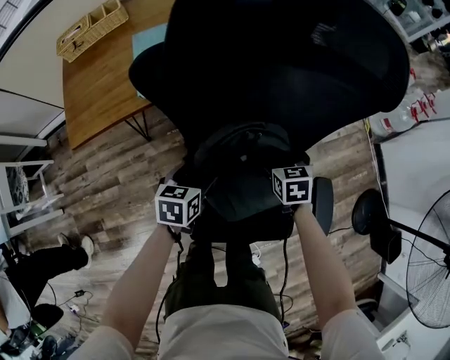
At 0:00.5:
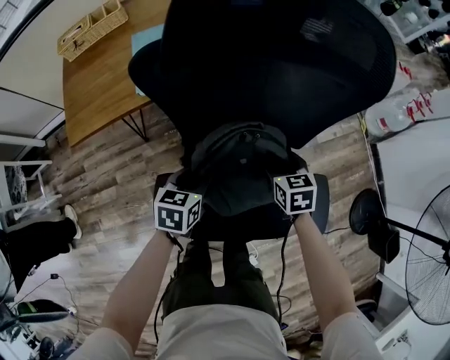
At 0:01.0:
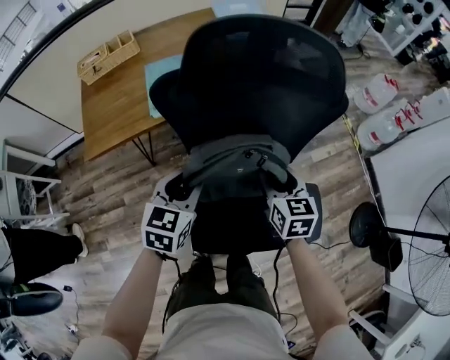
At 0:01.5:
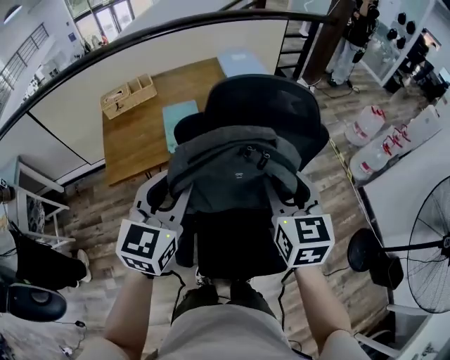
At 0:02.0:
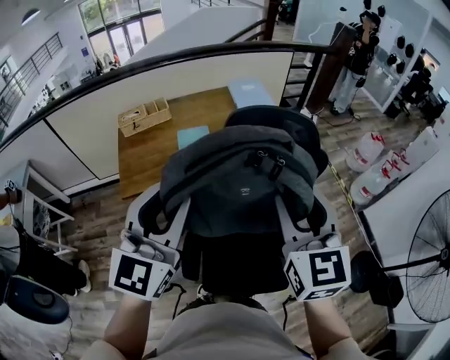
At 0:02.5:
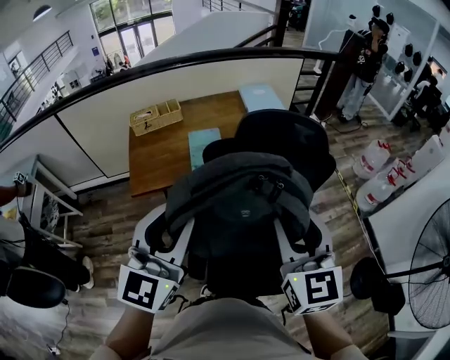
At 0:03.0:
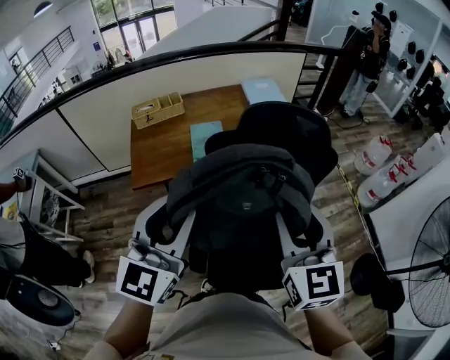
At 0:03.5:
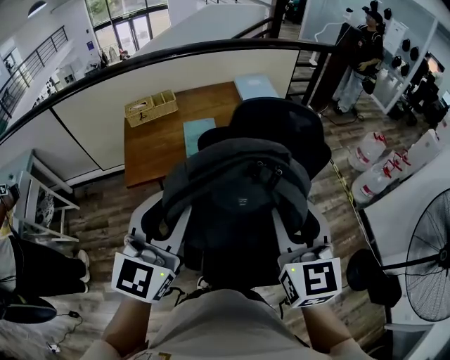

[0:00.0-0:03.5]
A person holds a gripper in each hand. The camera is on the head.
0:00.0 to 0:02.0: The grippers both shift upward by some 50 cm. The right gripper tips its fingers upward by approximately 40 degrees, and closes its fingers, while the left gripper points its fingers approximately 50 degrees further upward, and closes its fingers.
0:02.0 to 0:03.5: The left gripper ends up about 5 cm from where it was; the right gripper travels backward by approximately 5 cm.

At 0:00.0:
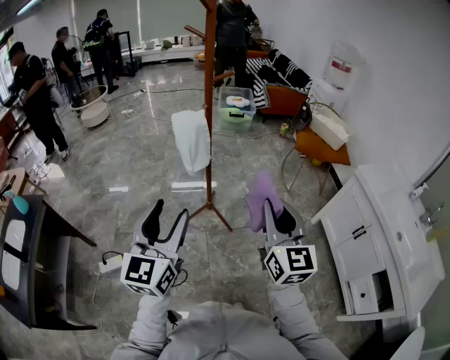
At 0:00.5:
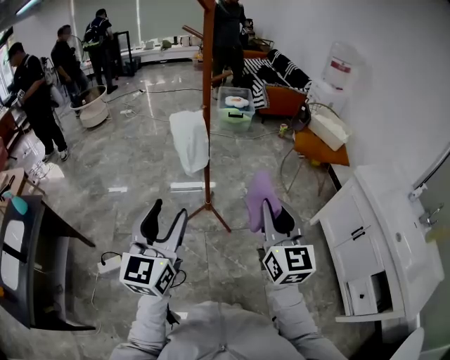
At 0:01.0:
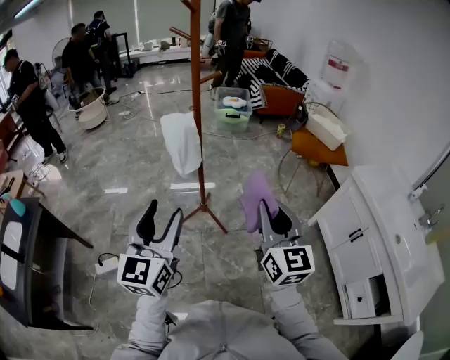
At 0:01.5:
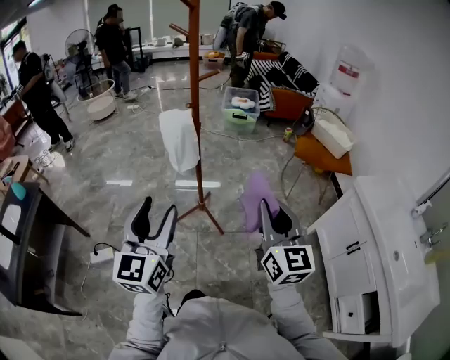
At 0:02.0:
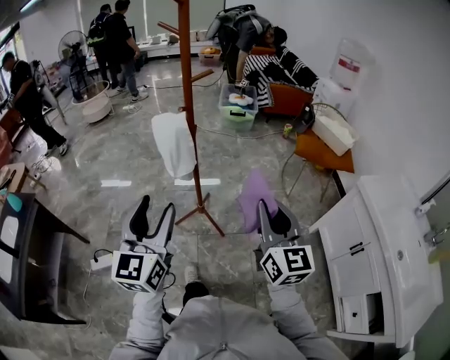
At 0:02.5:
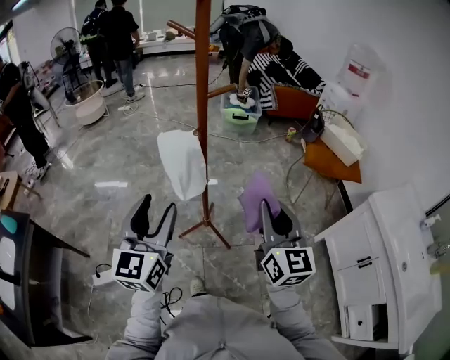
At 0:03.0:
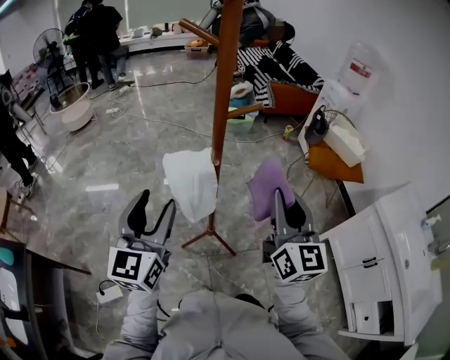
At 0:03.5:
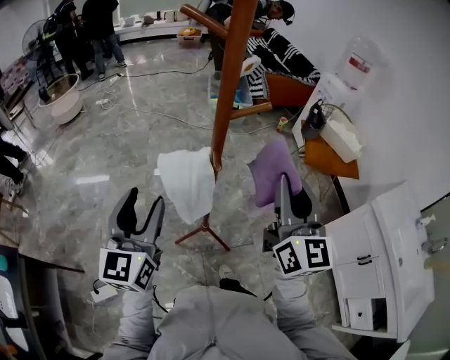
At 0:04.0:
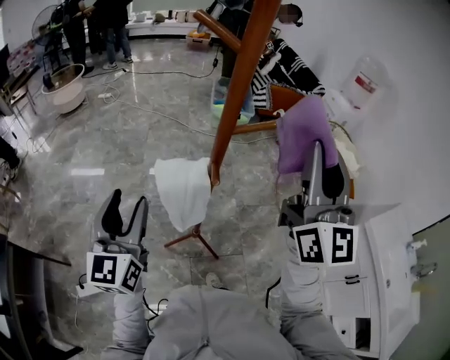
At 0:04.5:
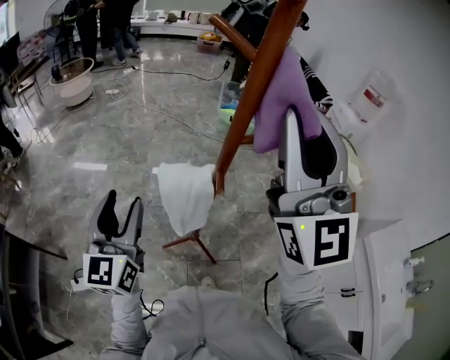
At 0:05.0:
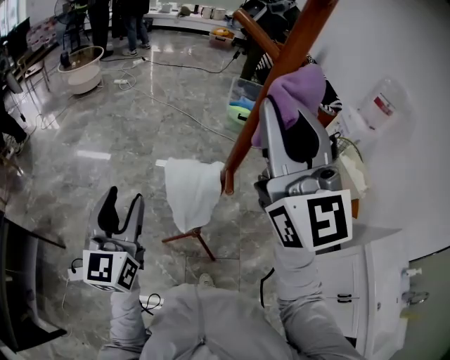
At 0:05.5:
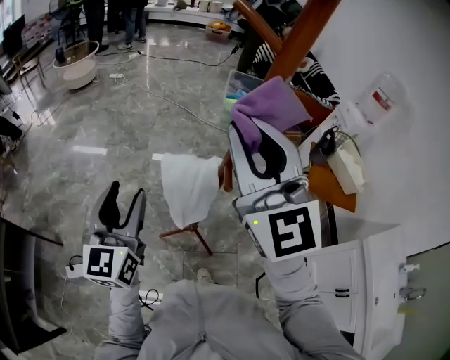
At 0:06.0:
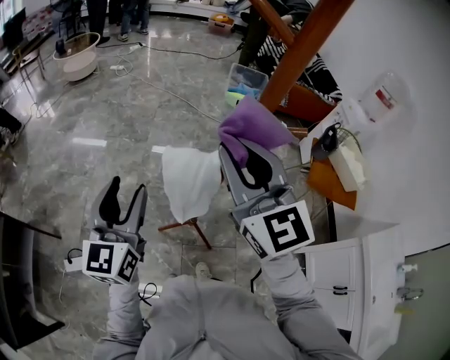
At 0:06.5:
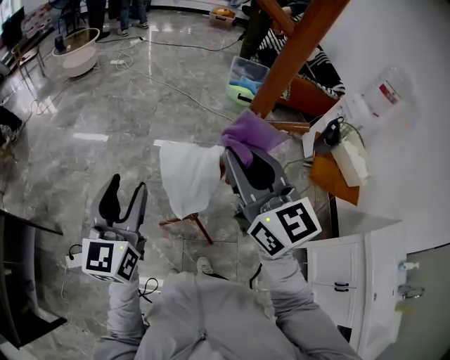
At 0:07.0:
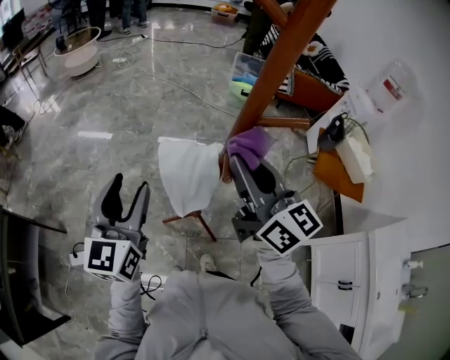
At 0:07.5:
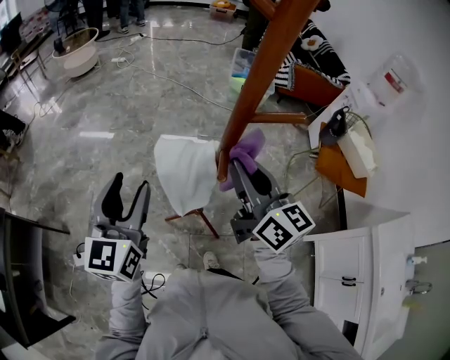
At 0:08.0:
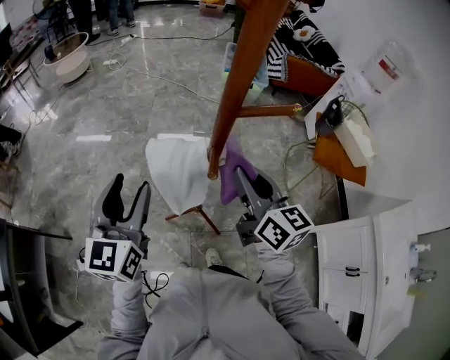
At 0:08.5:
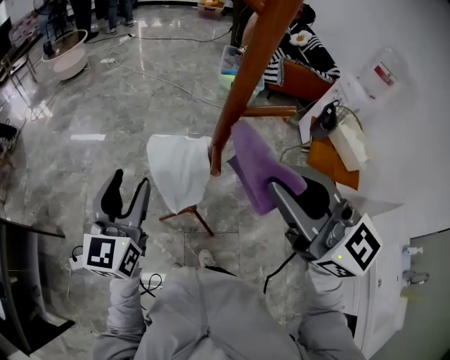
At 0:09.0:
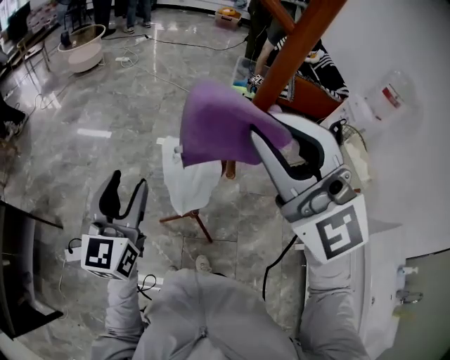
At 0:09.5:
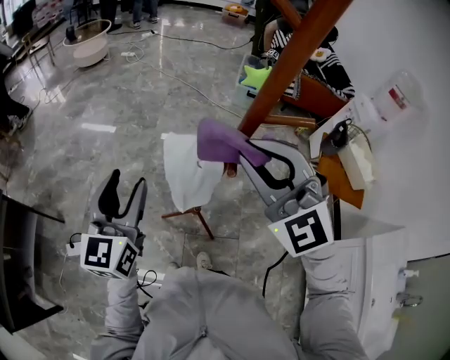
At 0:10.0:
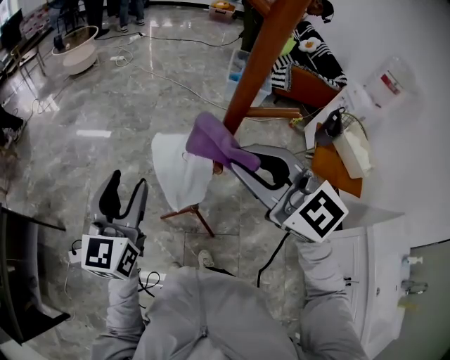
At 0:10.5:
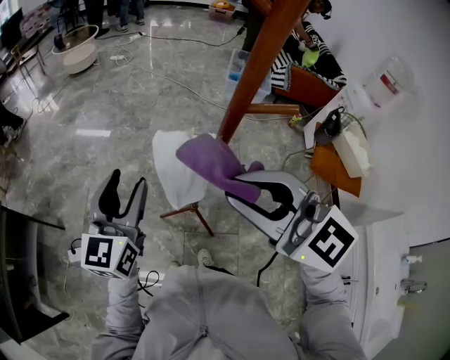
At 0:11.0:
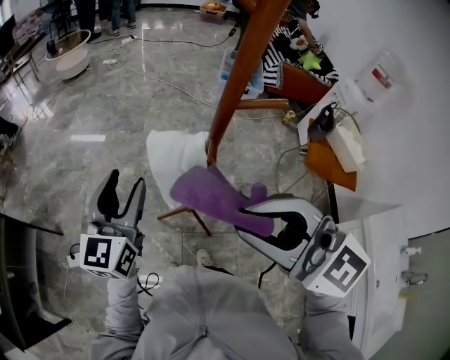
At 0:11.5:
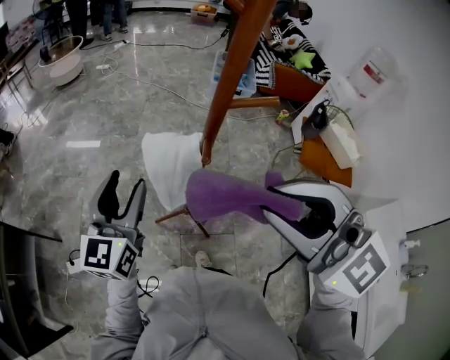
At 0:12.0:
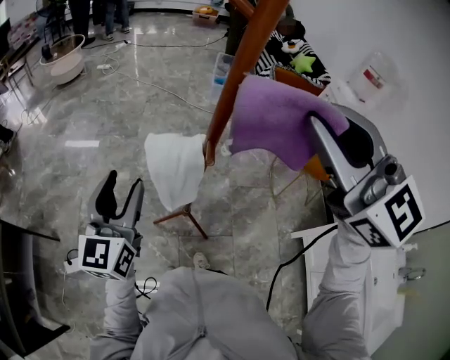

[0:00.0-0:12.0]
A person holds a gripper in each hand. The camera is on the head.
0:00.0 to 0:02.0: The grippers both shift forward and to the right by approximately 10 cm.
0:02.0 to 0:04.0: The right gripper travels forward, upward and to the left by some 35 cm, and swivels approximately 30 degrees, while the left gripper is displaced forward and to the left by some 35 cm.
0:04.0 to 0:06.0: The right gripper shifts roughly 20 cm to the left, downward and forward, and swivels approximately 40 degrees.
0:06.0 to 0:08.0: The right gripper shifts about 20 cm downward and to the right, and swivels about 40 degrees.
0:08.0 to 0:10.0: The right gripper moves upward and to the left, about 15 cm, and swivels roughly 50 degrees.
0:10.0 to 0:12.0: The right gripper shifts roughly 15 cm upward, and changes its angle by some 20 degrees.

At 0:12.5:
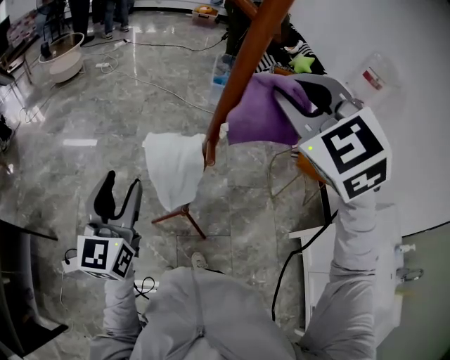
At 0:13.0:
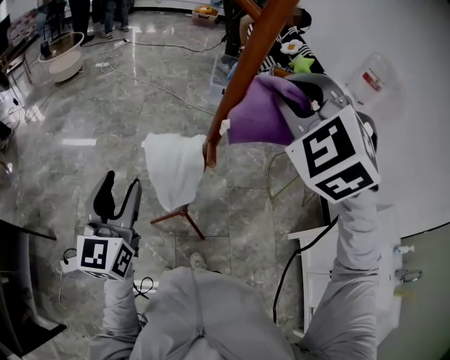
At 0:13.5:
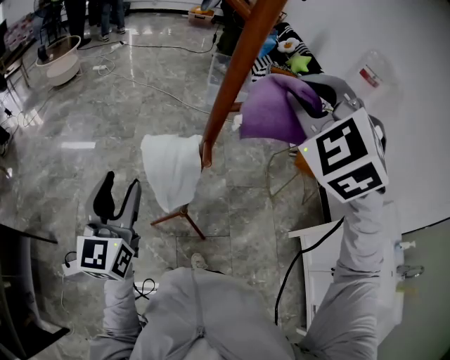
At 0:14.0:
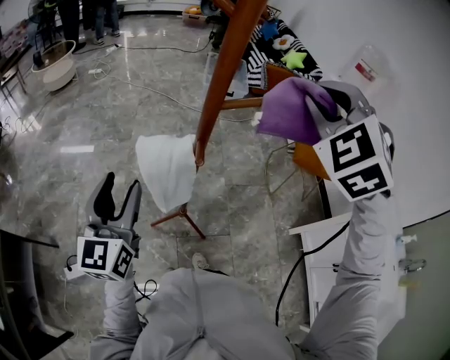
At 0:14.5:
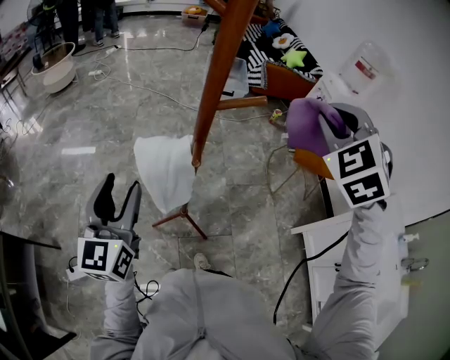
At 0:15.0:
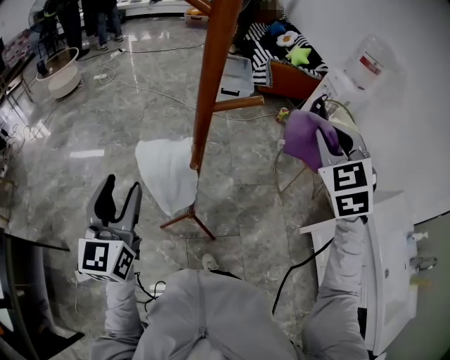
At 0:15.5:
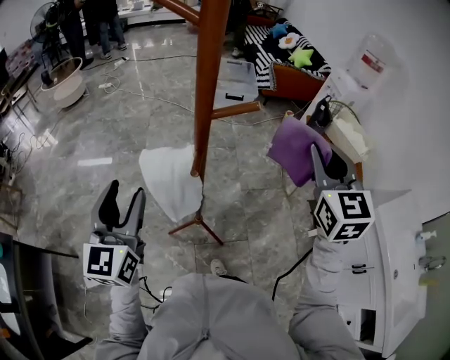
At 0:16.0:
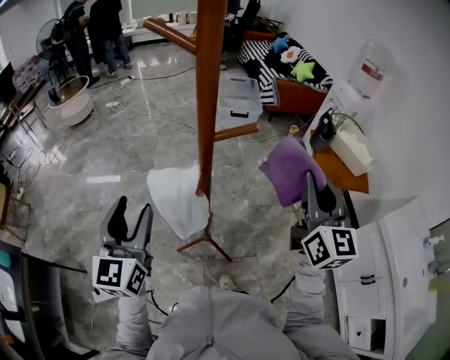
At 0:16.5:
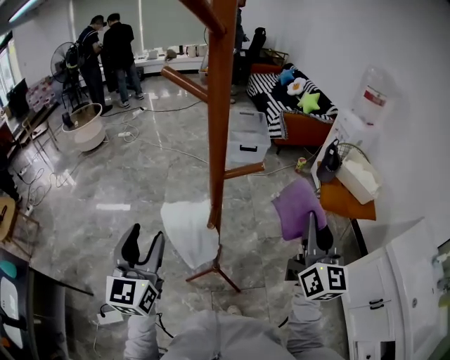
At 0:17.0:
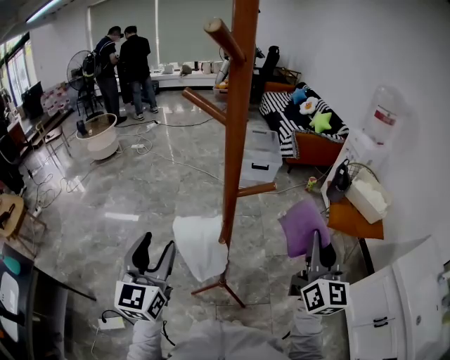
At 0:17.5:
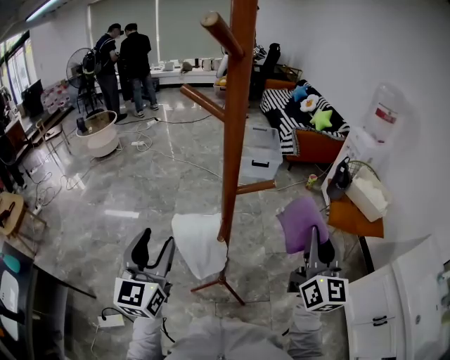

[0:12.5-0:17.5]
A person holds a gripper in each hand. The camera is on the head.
0:12.5 to 0:15.0: The right gripper travels to the right and downward by approximately 20 cm, and changes its angle by some 30 degrees.
0:15.0 to 0:17.5: The right gripper travels backward by about 5 cm, and rolls clockwise, seen from behind, by roughly 50 degrees.

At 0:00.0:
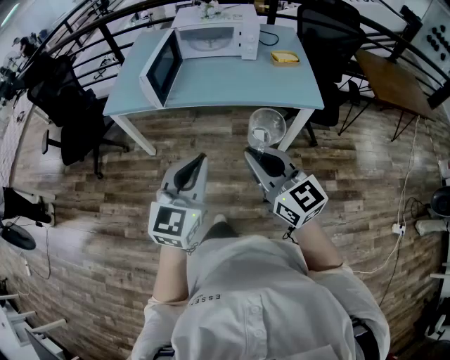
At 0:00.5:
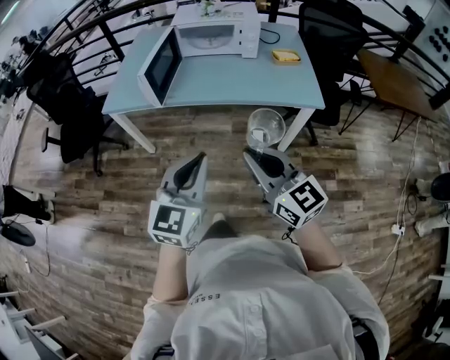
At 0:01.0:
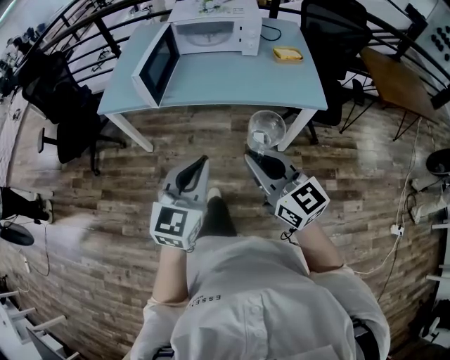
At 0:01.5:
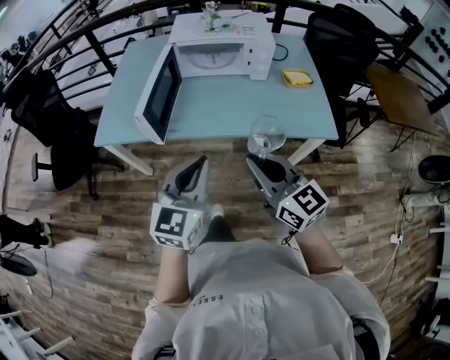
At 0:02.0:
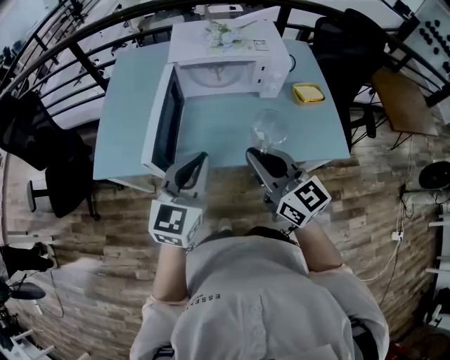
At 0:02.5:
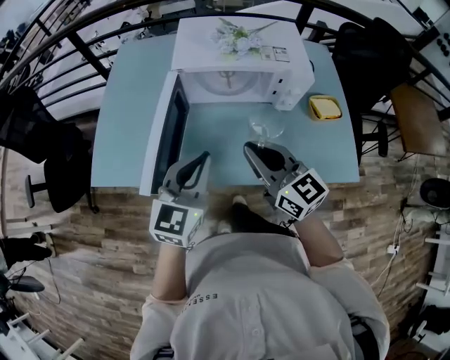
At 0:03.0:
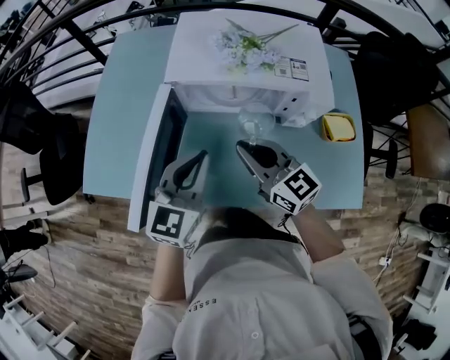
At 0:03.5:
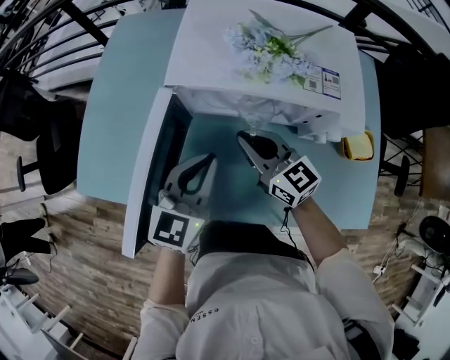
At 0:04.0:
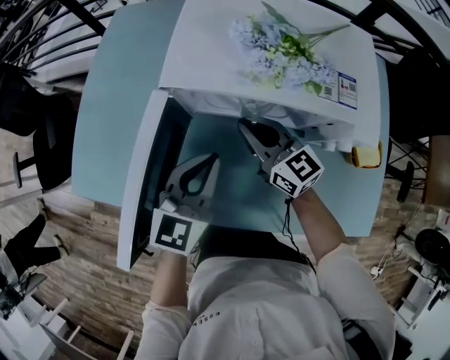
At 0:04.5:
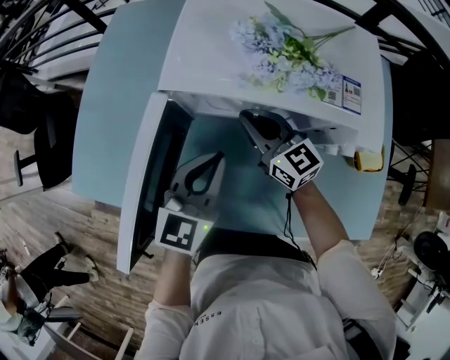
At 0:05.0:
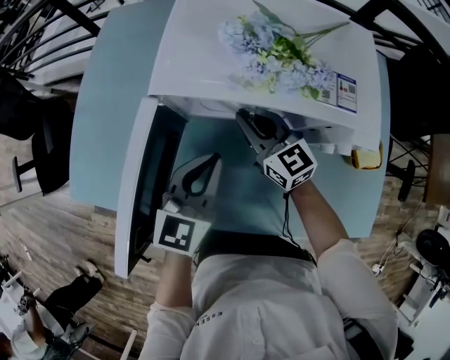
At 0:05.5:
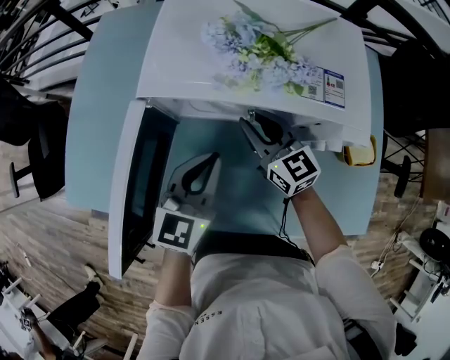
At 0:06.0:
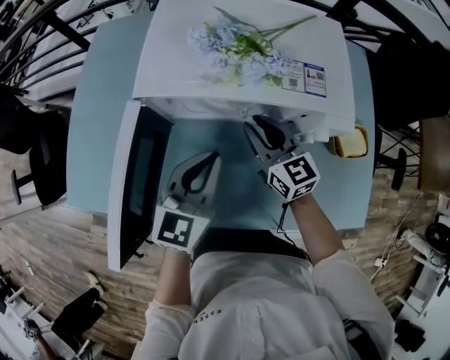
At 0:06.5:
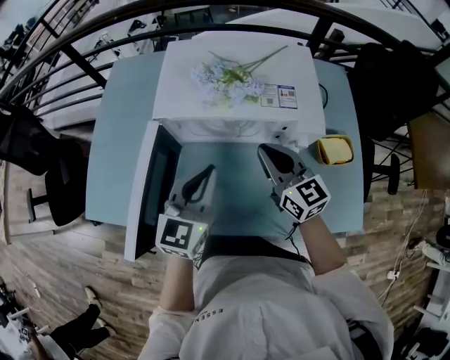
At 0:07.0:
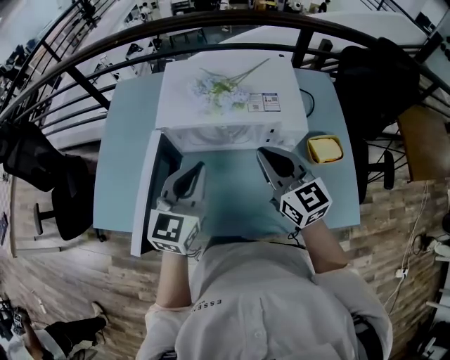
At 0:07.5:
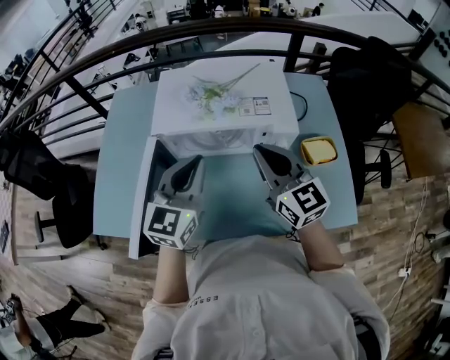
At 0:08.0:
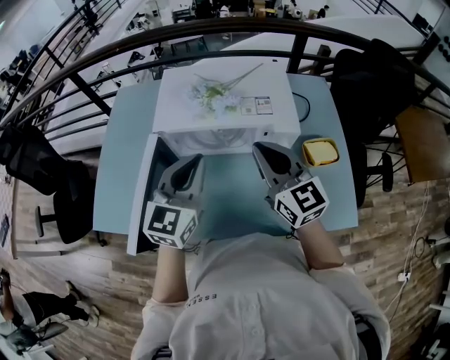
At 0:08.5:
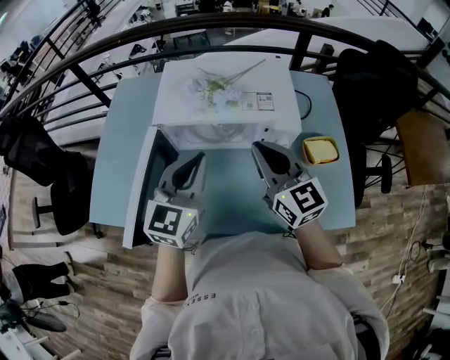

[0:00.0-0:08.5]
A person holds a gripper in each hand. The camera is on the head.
0:00.0 to 0:02.0: The grippers both shift forward by approximately 35 cm.
0:02.0 to 0:04.0: Both grippers move forward and downward, about 35 cm.
0:04.0 to 0:06.5: The left gripper moves upward, some 5 cm. Meanwhile the right gripper travels to the right, upward and backward by some 15 cm.
0:06.5 to 0:08.5: The grippers both shift upward by roughly 10 cm.
